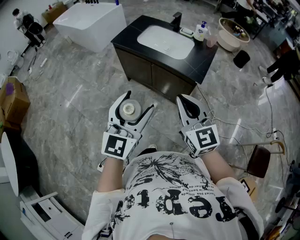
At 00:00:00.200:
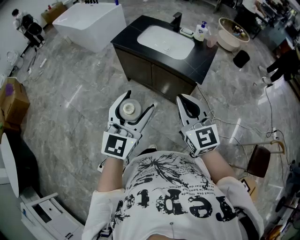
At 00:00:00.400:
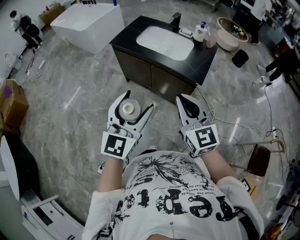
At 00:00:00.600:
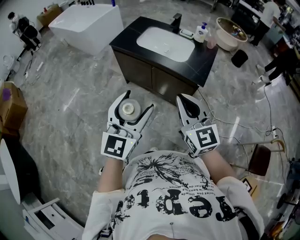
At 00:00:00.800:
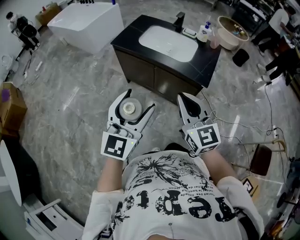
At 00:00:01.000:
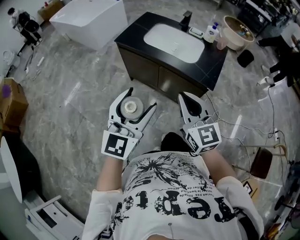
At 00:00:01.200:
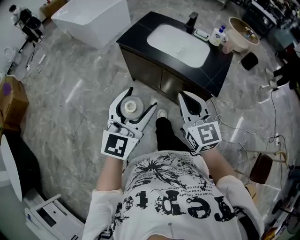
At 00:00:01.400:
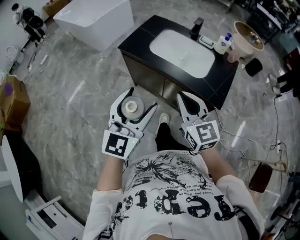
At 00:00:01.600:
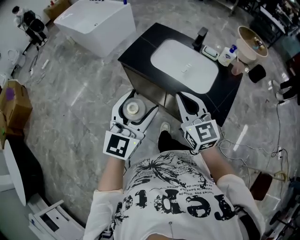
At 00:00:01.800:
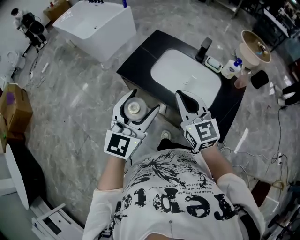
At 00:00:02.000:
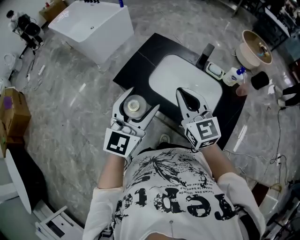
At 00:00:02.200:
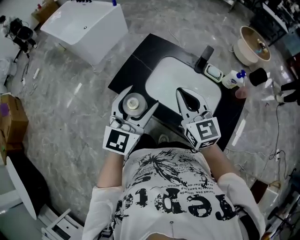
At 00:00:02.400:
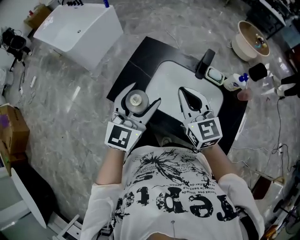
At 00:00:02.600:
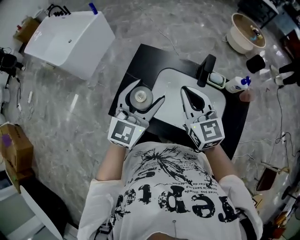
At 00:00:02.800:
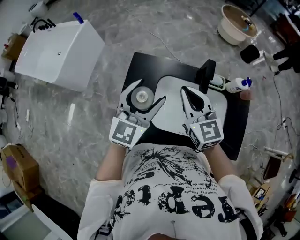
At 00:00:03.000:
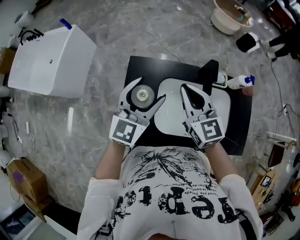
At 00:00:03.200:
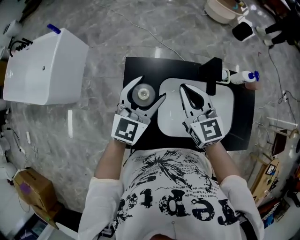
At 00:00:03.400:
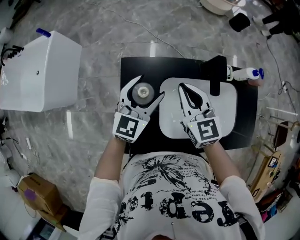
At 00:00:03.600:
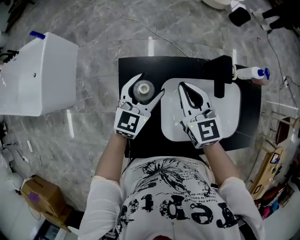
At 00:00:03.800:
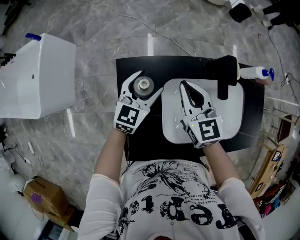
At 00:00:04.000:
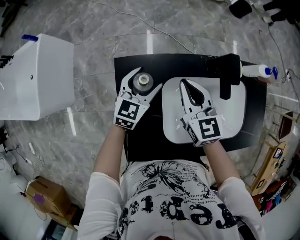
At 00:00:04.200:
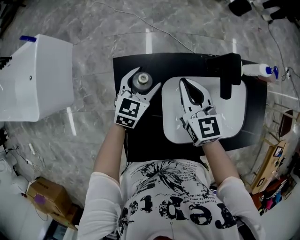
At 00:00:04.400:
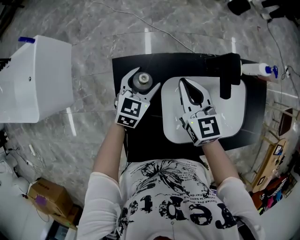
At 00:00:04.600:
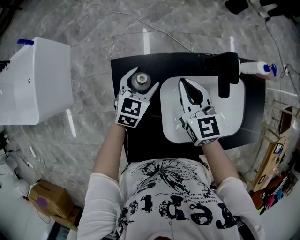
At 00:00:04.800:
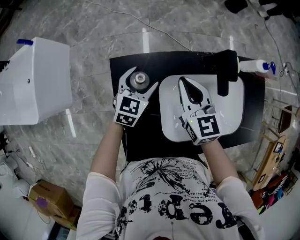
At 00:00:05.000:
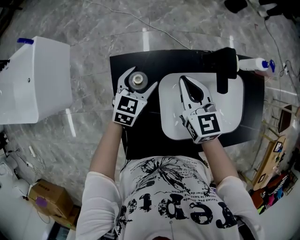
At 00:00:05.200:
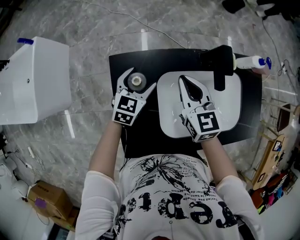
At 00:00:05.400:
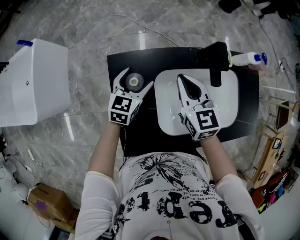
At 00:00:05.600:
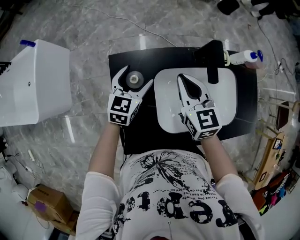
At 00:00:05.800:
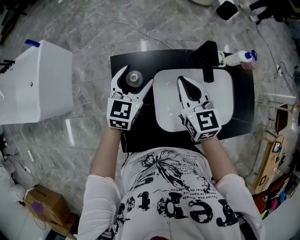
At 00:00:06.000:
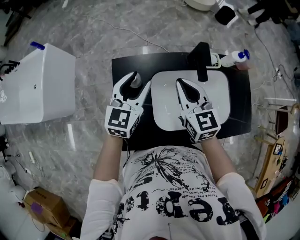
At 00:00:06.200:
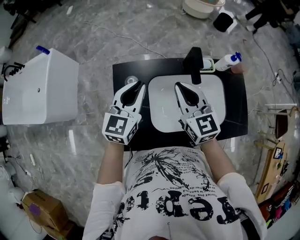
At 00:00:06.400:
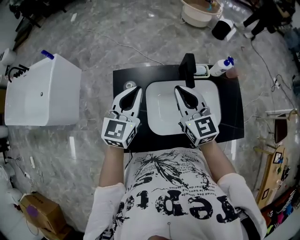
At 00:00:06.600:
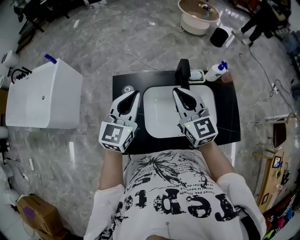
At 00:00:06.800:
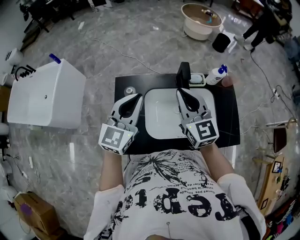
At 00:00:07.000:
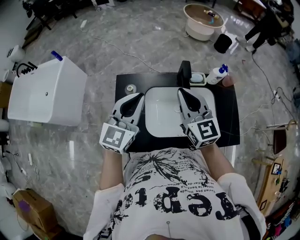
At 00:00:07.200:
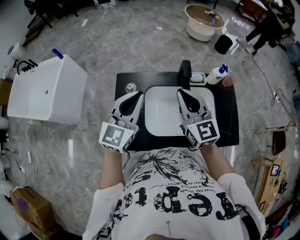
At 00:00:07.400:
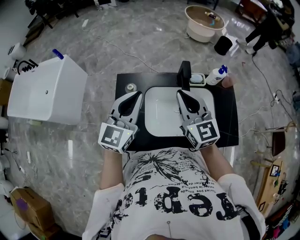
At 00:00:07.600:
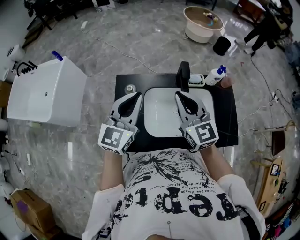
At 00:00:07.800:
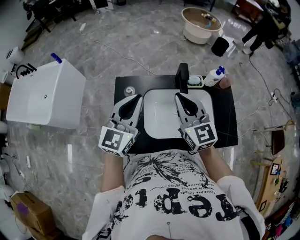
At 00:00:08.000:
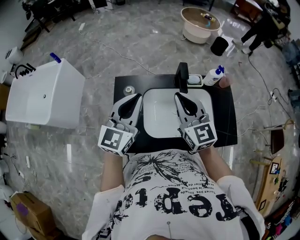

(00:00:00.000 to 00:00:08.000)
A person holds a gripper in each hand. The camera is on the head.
00:00:00.000 - 00:00:01.600: Both grippers travel together forward, approximately 35 cm.
00:00:01.600 - 00:00:03.200: The two grippers travel together, approximately 60 cm. The left gripper changes its angle by roughly 40 degrees, while the right gripper swivels some 30 degrees.
00:00:03.200 - 00:00:04.800: The right gripper is displaced downward and forward by about 15 cm, while the left gripper travels downward and forward by roughly 25 cm, and changes its angle by approximately 30 degrees.
00:00:04.800 - 00:00:06.400: The right gripper is displaced upward, backward and to the right by about 25 cm. Meanwhile the left gripper is displaced upward and backward by some 30 cm, turns by approximately 20 degrees, and closes up.
00:00:06.400 - 00:00:08.000: Both grippers travel together upward and backward, approximately 10 cm.

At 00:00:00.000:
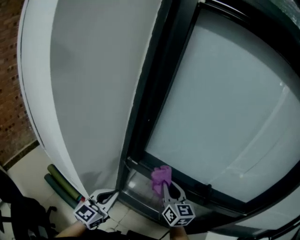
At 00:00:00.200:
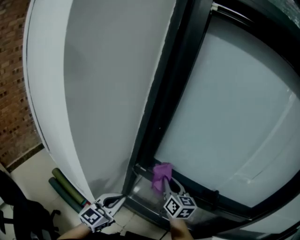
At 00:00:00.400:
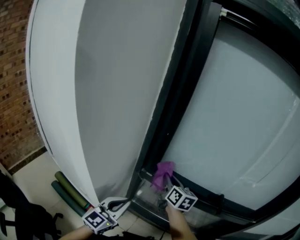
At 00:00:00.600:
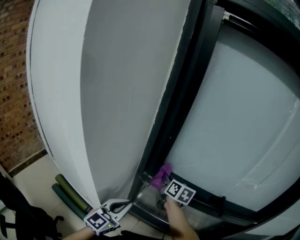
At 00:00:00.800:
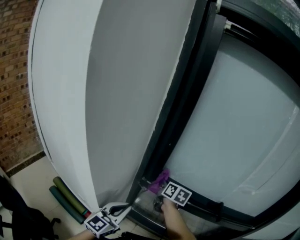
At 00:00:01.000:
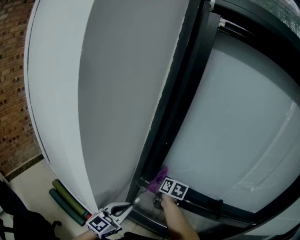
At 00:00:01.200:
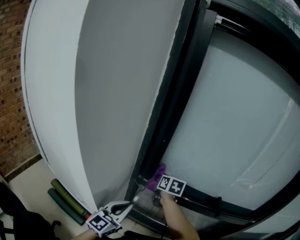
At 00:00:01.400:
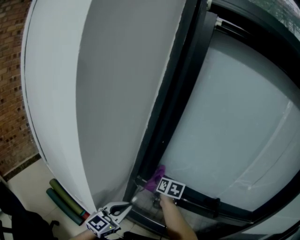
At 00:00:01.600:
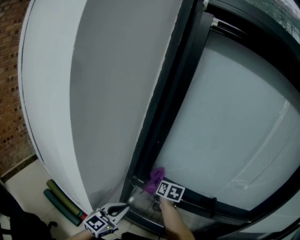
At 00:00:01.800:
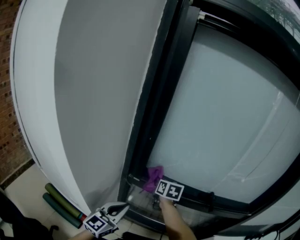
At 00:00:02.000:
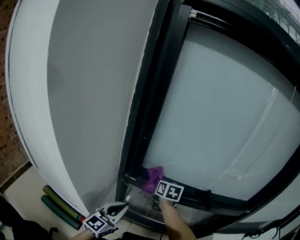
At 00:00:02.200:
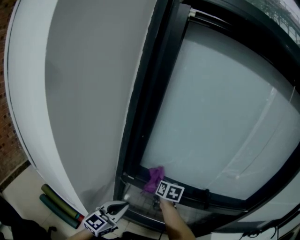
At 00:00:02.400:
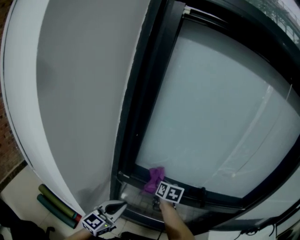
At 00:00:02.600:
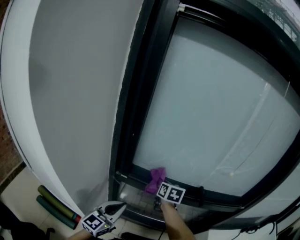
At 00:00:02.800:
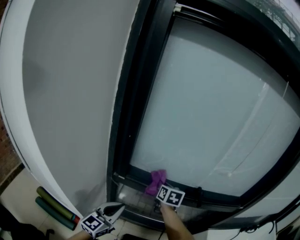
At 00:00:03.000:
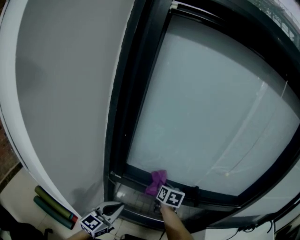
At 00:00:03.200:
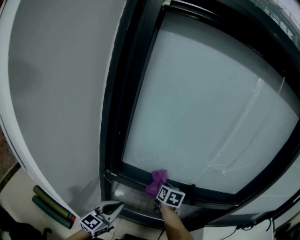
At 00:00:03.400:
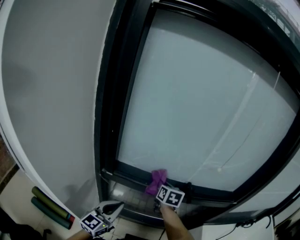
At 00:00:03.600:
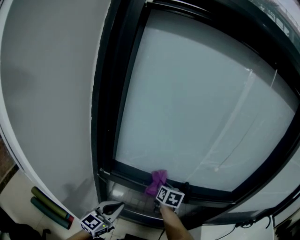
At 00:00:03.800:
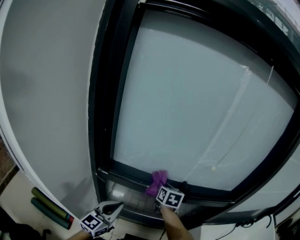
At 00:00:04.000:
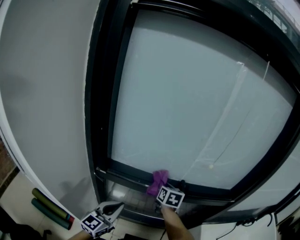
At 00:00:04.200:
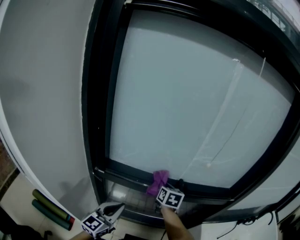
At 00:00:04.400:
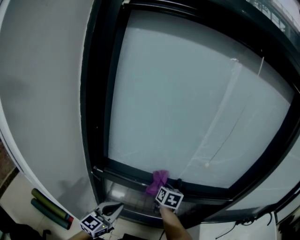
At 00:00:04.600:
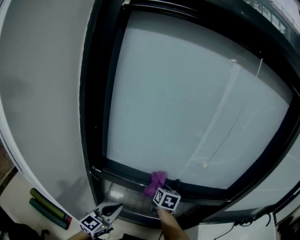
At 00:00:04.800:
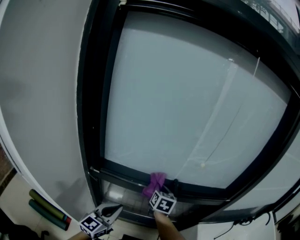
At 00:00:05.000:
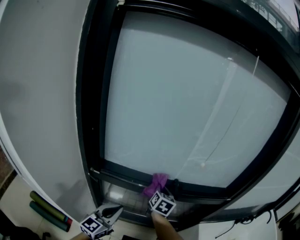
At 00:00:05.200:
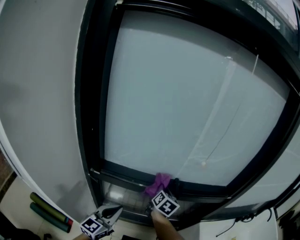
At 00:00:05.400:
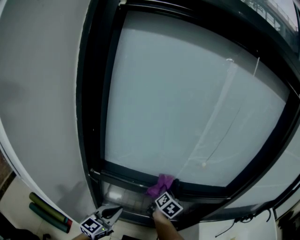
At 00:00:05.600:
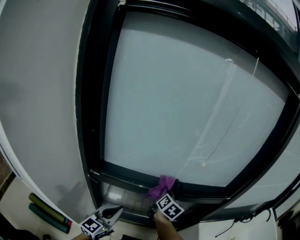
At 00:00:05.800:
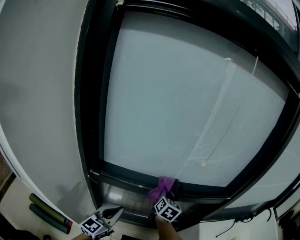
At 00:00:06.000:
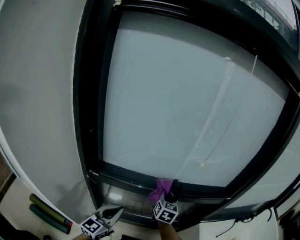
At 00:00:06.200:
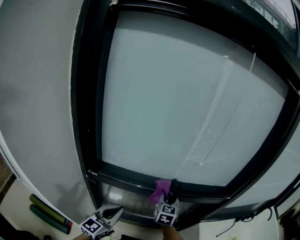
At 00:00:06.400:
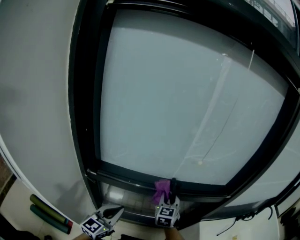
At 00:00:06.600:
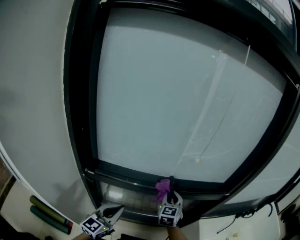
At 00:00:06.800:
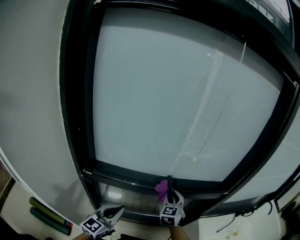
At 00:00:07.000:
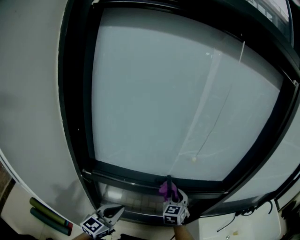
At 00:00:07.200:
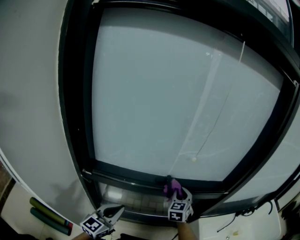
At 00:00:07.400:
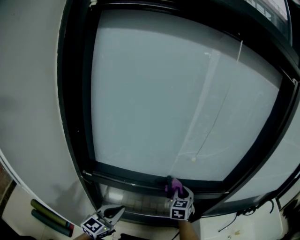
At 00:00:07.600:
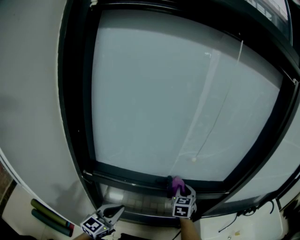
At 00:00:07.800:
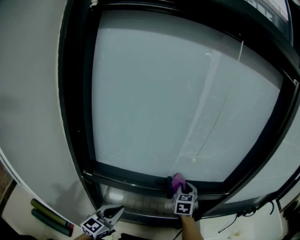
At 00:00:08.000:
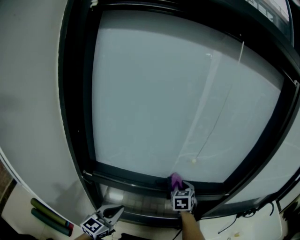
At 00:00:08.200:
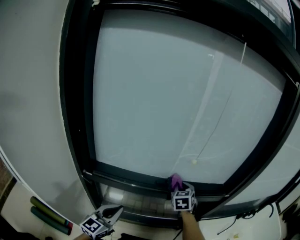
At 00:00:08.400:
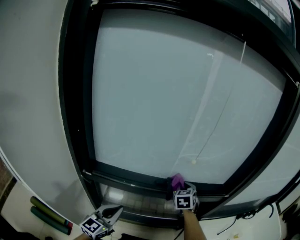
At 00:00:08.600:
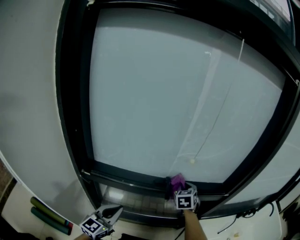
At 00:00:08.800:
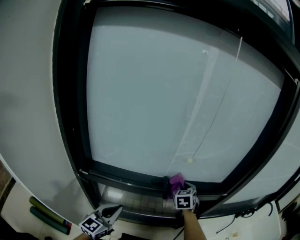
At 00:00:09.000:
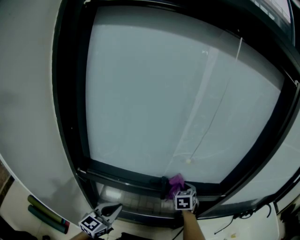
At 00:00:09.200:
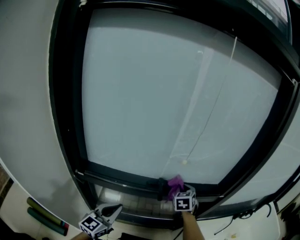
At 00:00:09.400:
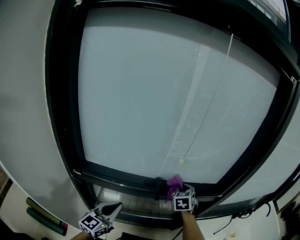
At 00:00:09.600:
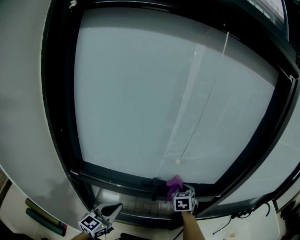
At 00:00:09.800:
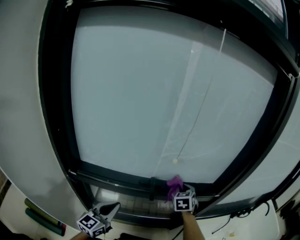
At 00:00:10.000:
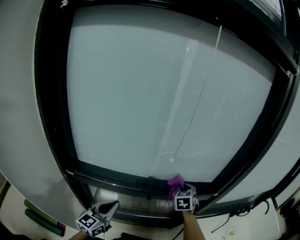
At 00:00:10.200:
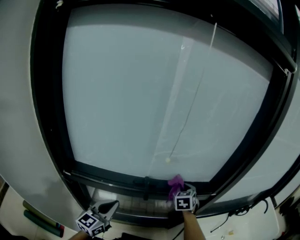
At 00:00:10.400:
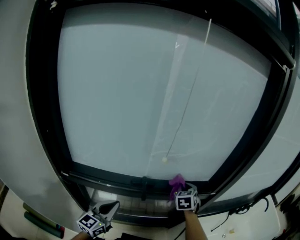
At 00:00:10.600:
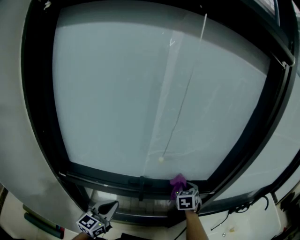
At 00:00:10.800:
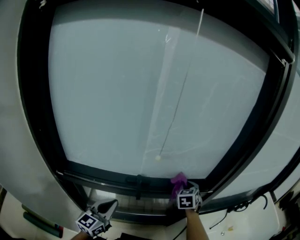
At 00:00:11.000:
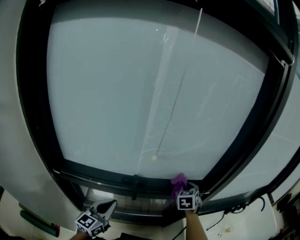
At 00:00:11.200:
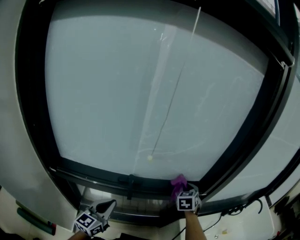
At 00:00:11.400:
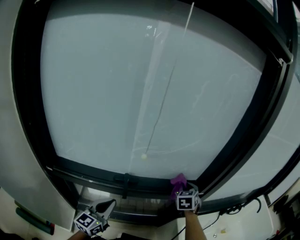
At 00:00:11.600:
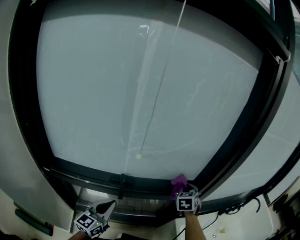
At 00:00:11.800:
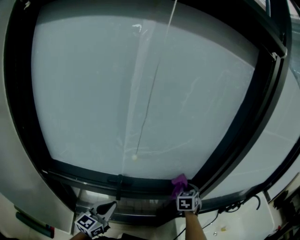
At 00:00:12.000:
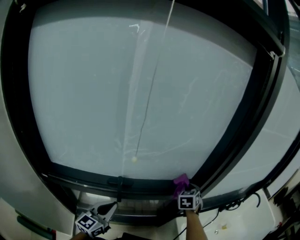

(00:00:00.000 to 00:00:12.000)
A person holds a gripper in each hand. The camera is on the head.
00:00:00.000 - 00:00:01.600: The right gripper travels forward, to the left and downward by roughly 15 cm, and changes its angle by some 30 degrees.
00:00:01.600 - 00:00:03.000: The right gripper moves to the right, some 15 cm. Meanwhile the left gripper goes about 5 cm to the right.
00:00:03.000 - 00:00:04.400: The grippers both shift to the right by roughly 10 cm.
00:00:04.400 - 00:00:06.000: The right gripper changes place by about 5 cm.
00:00:06.000 - 00:00:07.600: The right gripper is displaced to the right by some 10 cm, and rotates approximately 20 degrees.
00:00:07.600 - 00:00:09.000: The grippers make only small movements.
00:00:09.000 - 00:00:10.400: The left gripper goes about 5 cm forward; the right gripper goes approximately 10 cm to the right.
00:00:10.400 - 00:00:12.000: Both grippers move to the right and forward, roughly 10 cm.

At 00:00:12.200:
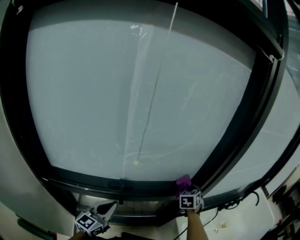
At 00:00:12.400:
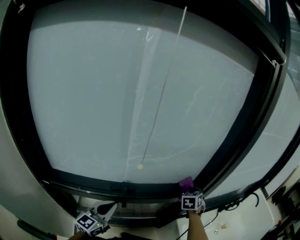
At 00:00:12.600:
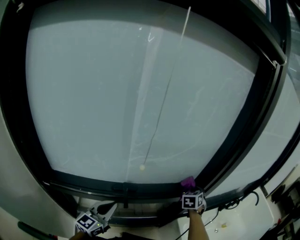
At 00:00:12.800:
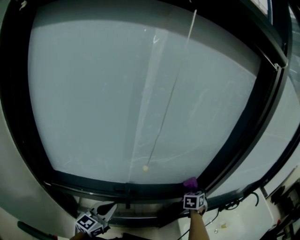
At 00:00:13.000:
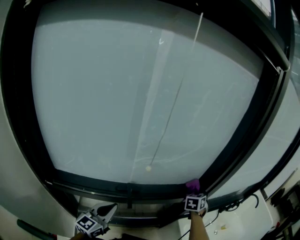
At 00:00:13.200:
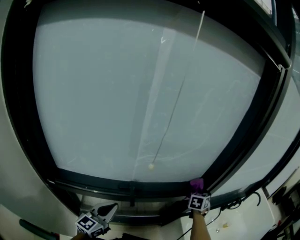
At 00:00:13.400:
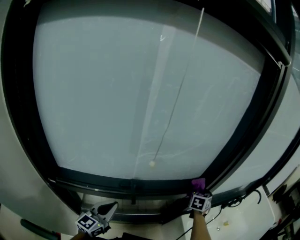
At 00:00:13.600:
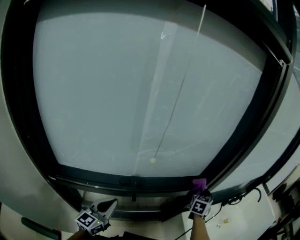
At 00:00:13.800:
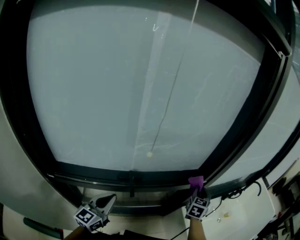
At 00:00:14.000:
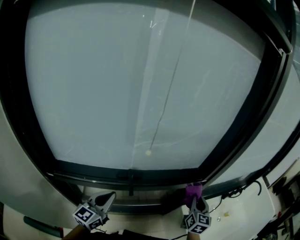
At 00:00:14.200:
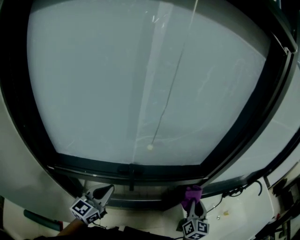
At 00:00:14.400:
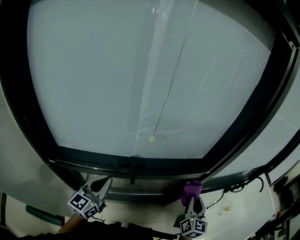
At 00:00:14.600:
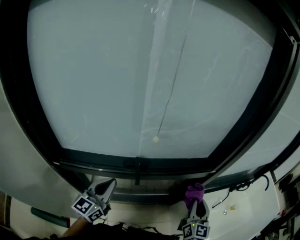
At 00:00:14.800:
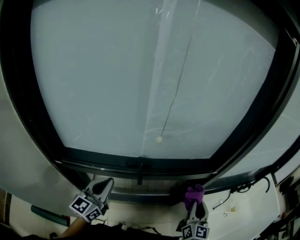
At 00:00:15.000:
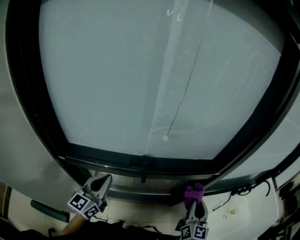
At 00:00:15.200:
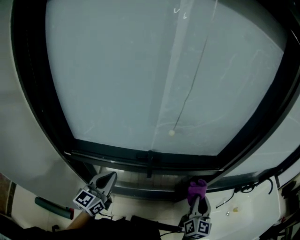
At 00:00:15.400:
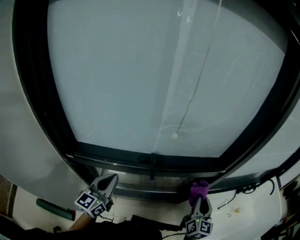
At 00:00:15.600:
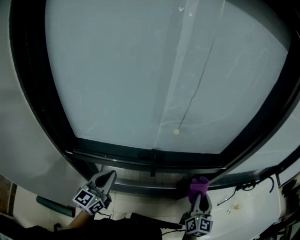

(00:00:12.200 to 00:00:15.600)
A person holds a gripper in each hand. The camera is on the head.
00:00:12.200 - 00:00:13.800: The right gripper heads backward and to the right, covering some 10 cm, and swivels about 20 degrees.
00:00:13.800 - 00:00:15.600: The left gripper goes about 5 cm to the left. The right gripper is displaced backward and to the left by about 15 cm, and turns by roughly 30 degrees.
